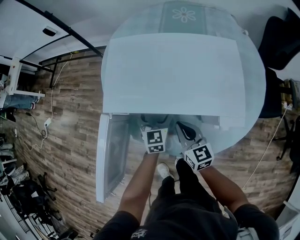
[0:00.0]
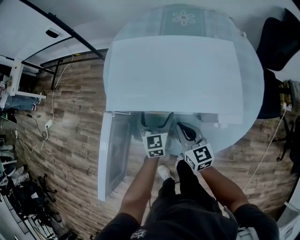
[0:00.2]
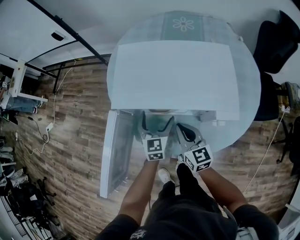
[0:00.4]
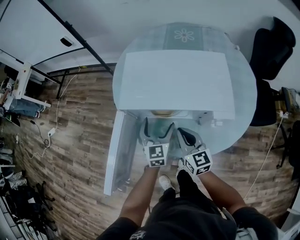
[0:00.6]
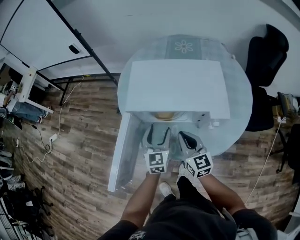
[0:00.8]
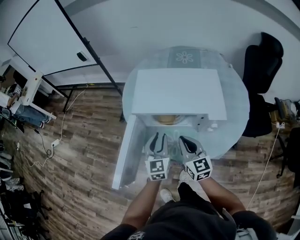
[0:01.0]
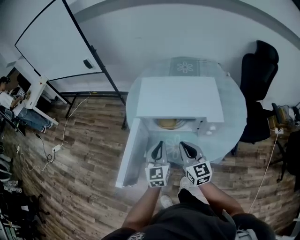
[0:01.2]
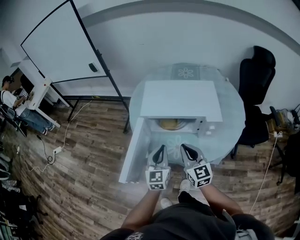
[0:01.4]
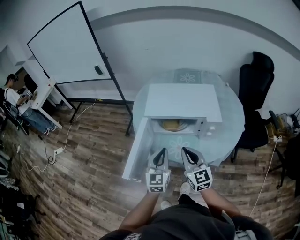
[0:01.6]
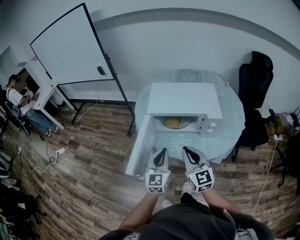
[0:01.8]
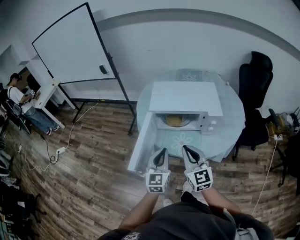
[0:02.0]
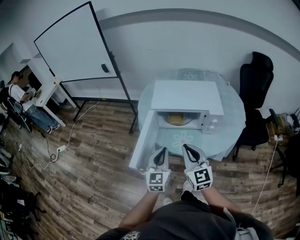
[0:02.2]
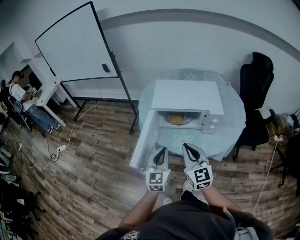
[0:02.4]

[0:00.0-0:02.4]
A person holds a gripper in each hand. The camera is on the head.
0:00.0 to 0:01.2: The left gripper moves backward and upward, some 25 cm, and closes up; the right gripper is displaced upward and backward by approximately 20 cm.
0:01.2 to 0:02.4: The left gripper moves backward and to the left, approximately 15 cm, while the right gripper heads backward, upward and to the left, covering about 15 cm.

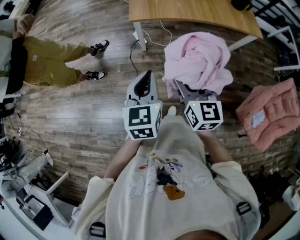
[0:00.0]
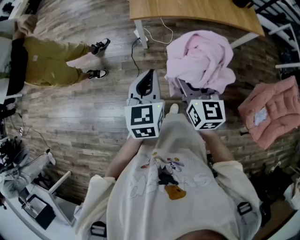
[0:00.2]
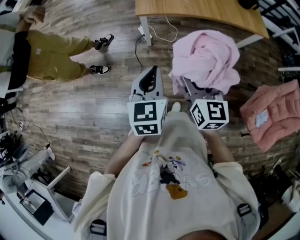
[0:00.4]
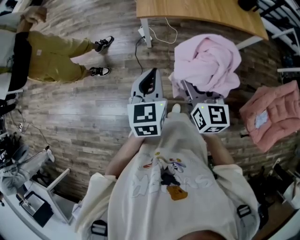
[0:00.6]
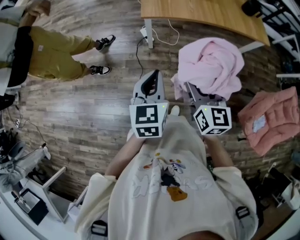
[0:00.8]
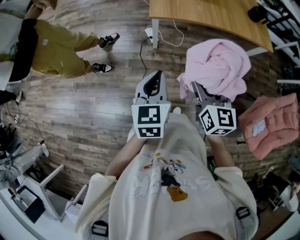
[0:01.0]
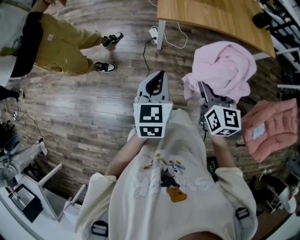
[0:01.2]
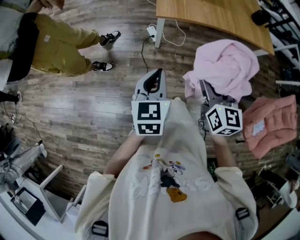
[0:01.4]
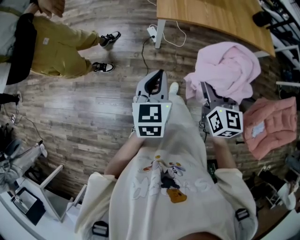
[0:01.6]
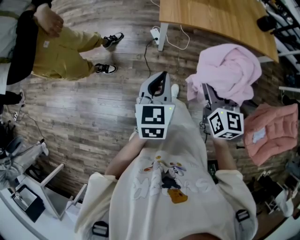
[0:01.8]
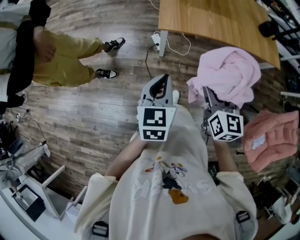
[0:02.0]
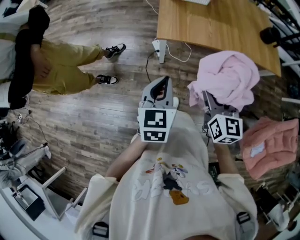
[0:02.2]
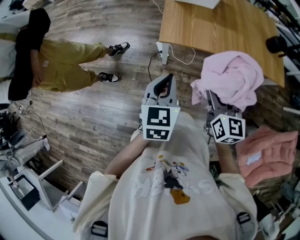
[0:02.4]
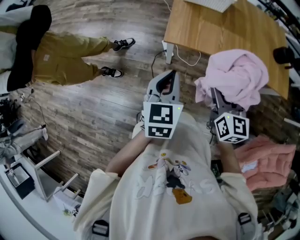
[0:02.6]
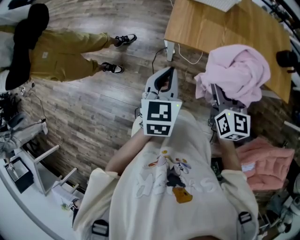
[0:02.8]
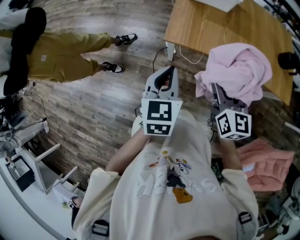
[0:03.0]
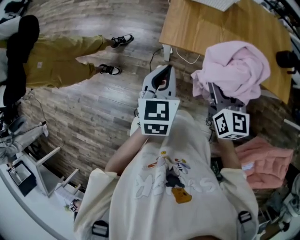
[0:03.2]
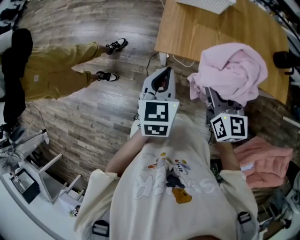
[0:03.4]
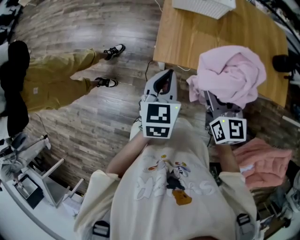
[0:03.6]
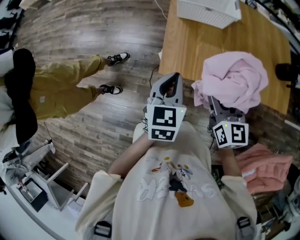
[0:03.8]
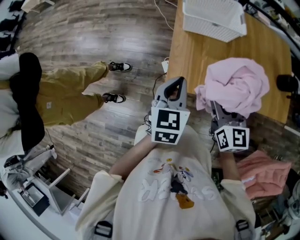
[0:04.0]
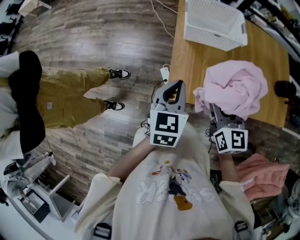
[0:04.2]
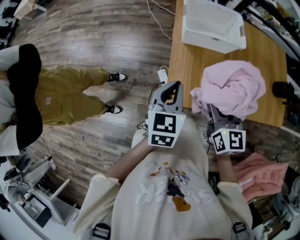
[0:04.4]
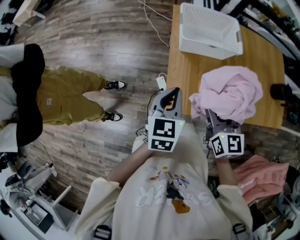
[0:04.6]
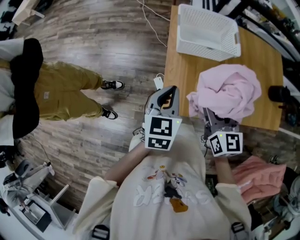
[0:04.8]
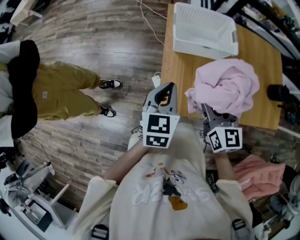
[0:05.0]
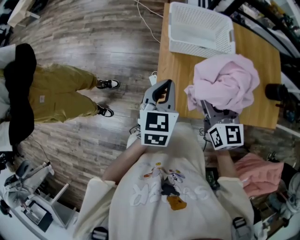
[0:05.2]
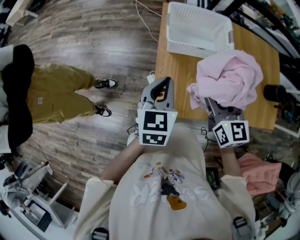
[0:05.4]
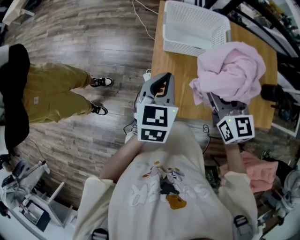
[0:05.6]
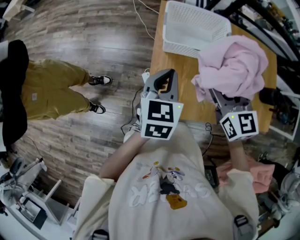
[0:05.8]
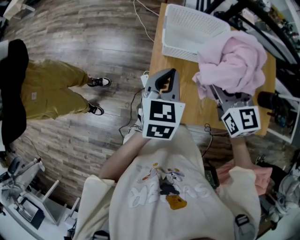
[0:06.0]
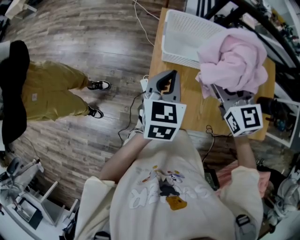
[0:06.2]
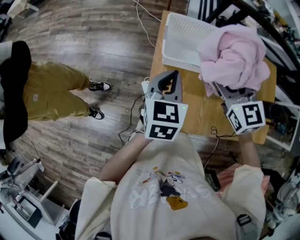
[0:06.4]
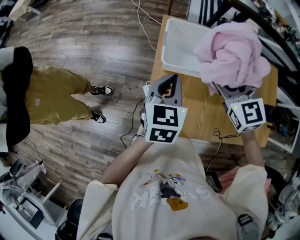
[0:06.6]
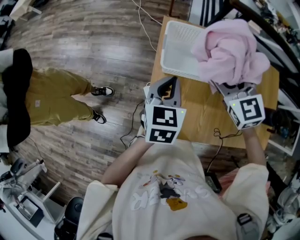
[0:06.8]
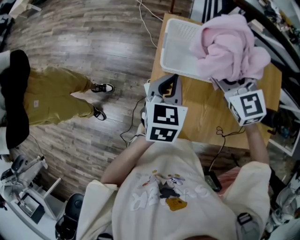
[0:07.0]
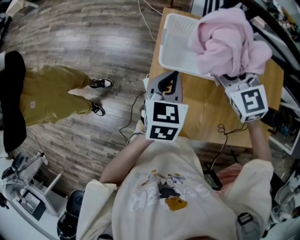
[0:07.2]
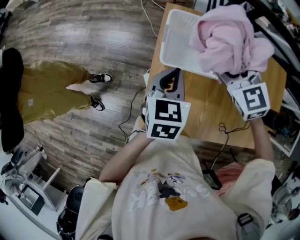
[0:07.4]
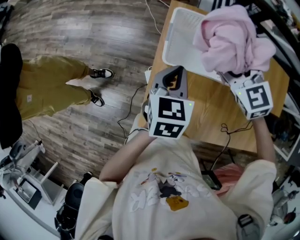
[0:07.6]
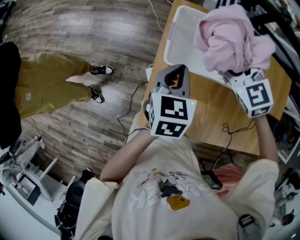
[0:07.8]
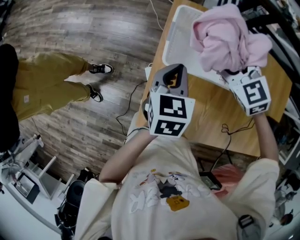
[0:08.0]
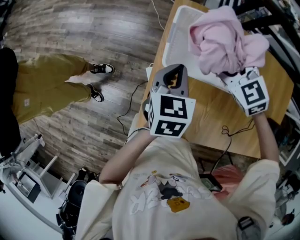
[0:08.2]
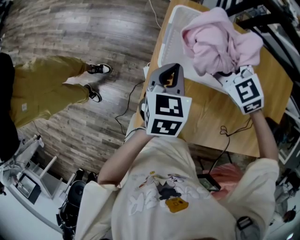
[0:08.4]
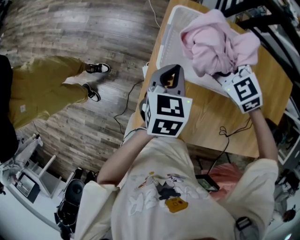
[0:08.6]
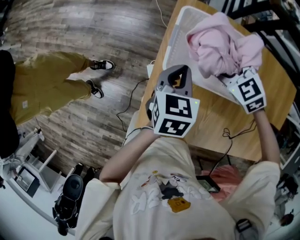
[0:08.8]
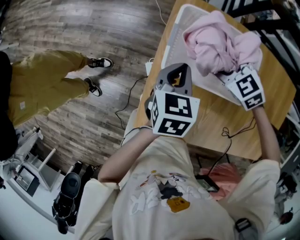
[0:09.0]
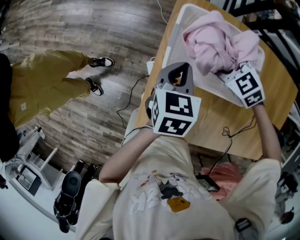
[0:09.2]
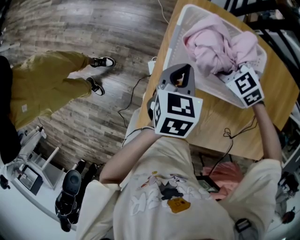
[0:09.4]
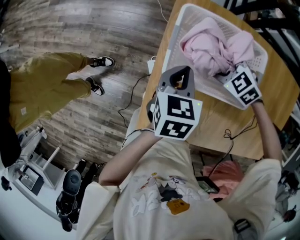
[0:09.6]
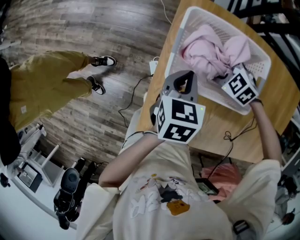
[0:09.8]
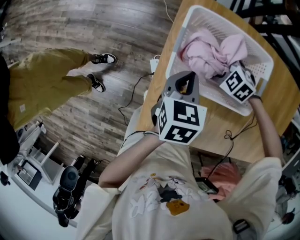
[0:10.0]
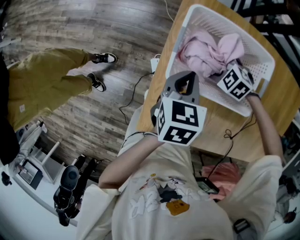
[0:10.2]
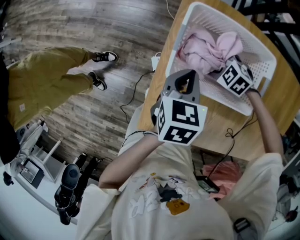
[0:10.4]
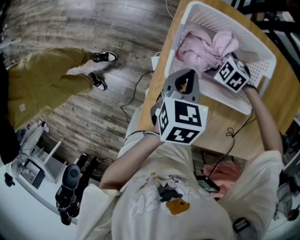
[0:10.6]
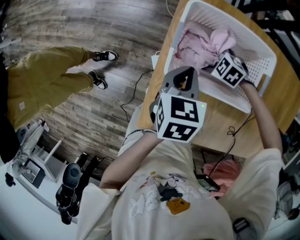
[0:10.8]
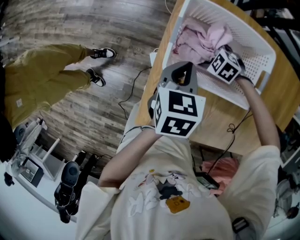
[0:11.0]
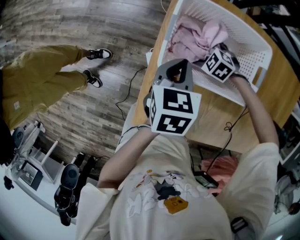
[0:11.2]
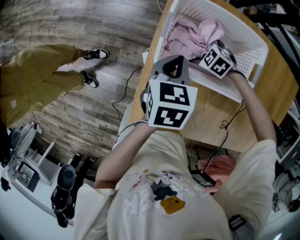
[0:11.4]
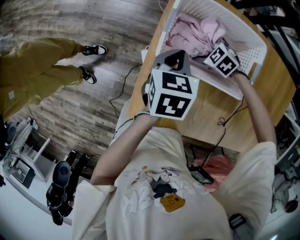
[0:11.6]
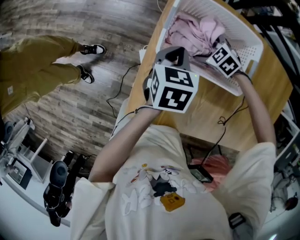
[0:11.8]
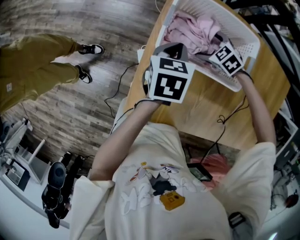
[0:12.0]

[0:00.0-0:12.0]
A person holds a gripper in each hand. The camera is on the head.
0:00.0 to 0:01.6: The left gripper moves to the left, some 10 cm; the right gripper shifts about 5 cm to the left.
0:01.6 to 0:03.0: The left gripper goes some 25 cm forward and to the right. Meanwhile the right gripper heads forward, covering roughly 25 cm.
0:03.0 to 0:04.4: The grippers both shift forward by some 30 cm.
0:04.4 to 0:06.0: The right gripper shifts about 20 cm forward. The left gripper shifts approximately 15 cm forward and to the right.
0:06.0 to 0:07.6: The left gripper moves forward and downward, some 10 cm. Meanwhile the right gripper shifts some 15 cm forward, and changes its angle by roughly 30 degrees.
0:07.6 to 0:09.0: The left gripper heads downward, covering roughly 5 cm; the right gripper travels downward by roughly 15 cm, and changes its angle by approximately 20 degrees.
0:09.0 to 0:10.4: The right gripper travels downward by approximately 15 cm, and turns by roughly 20 degrees.
0:10.4 to 0:12.0: The grippers make only small movements.

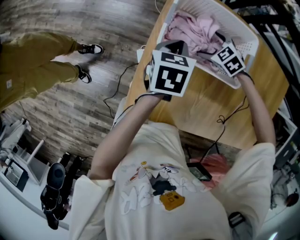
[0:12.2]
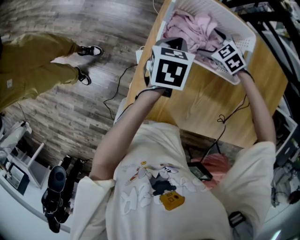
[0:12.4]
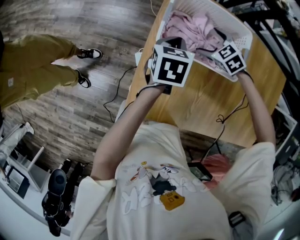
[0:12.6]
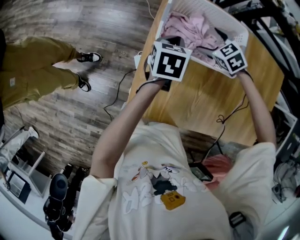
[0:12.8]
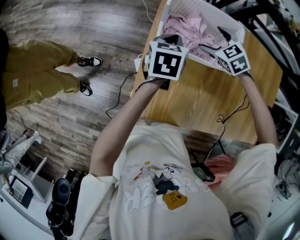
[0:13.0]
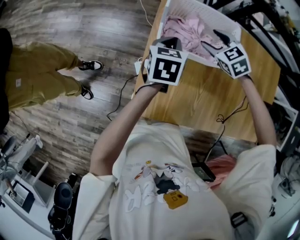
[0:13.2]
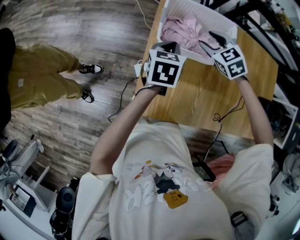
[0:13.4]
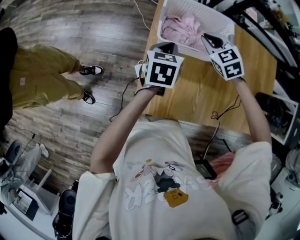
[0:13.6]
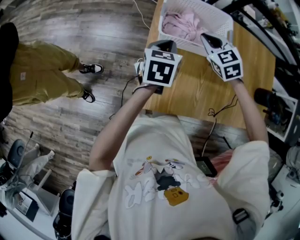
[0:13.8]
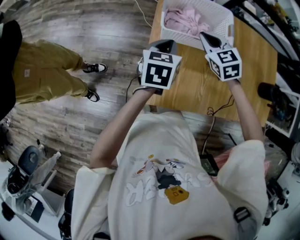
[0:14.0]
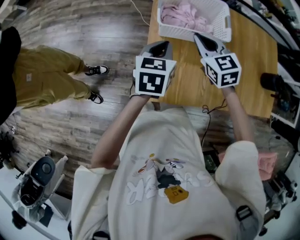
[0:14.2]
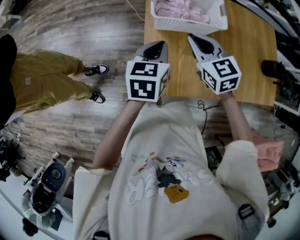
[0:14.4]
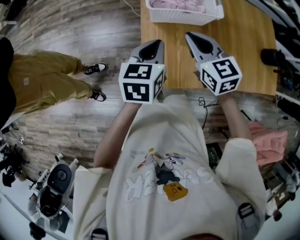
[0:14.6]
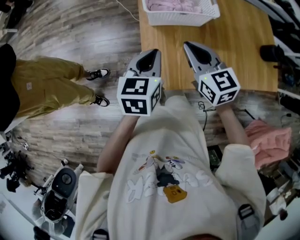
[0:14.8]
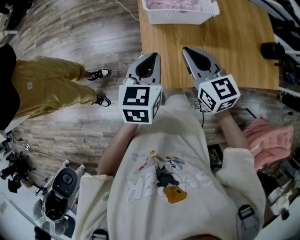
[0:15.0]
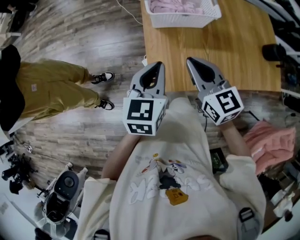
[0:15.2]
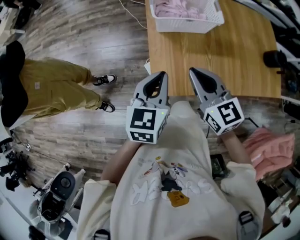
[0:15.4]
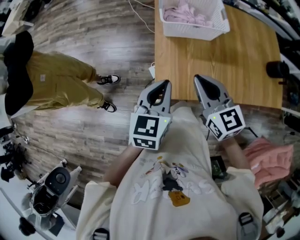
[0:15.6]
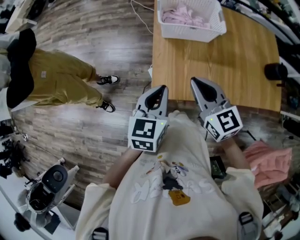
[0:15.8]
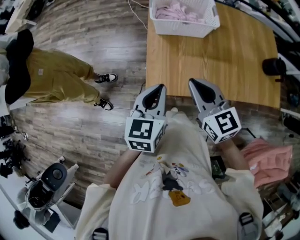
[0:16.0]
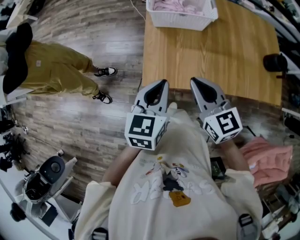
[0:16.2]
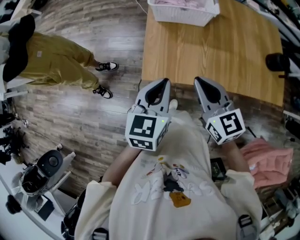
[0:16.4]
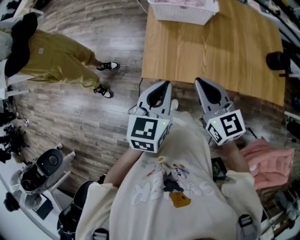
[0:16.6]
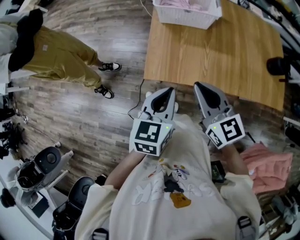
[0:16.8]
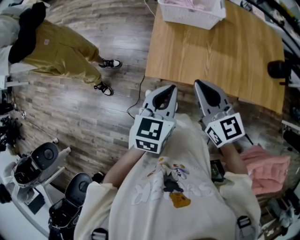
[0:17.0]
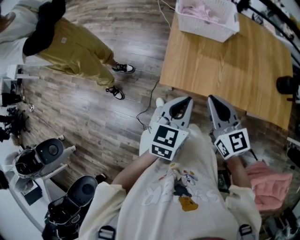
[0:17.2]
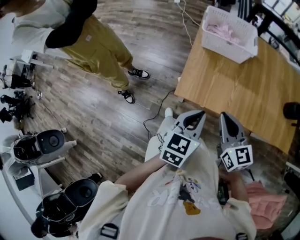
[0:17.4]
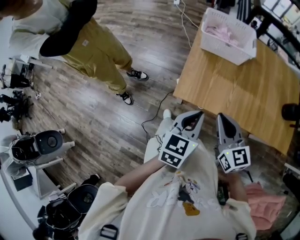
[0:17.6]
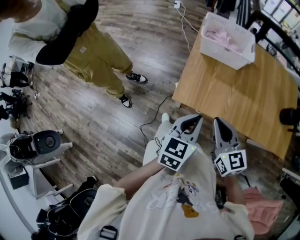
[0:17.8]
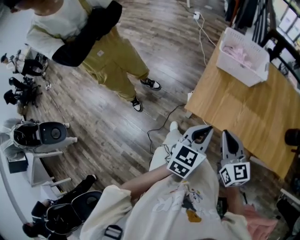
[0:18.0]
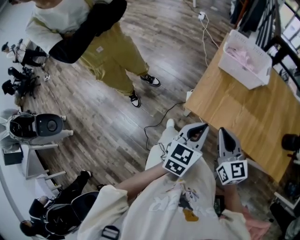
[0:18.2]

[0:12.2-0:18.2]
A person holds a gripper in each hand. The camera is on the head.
0:12.2 to 0:13.8: The left gripper travels backward and upward by approximately 10 cm. The right gripper travels upward and backward by about 20 cm, changes its angle by some 30 degrees, and closes.
0:13.8 to 0:15.2: The left gripper travels backward and upward by about 20 cm. Meanwhile the right gripper heads backward, covering about 25 cm, and rotates about 40 degrees.
0:15.2 to 0:16.6: Both grippers travel together backward and to the right, about 15 cm.
0:16.6 to 0:18.2: The right gripper heads to the left, covering about 5 cm.

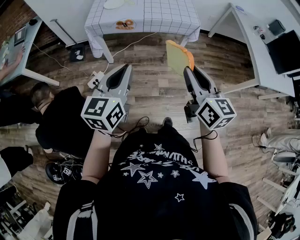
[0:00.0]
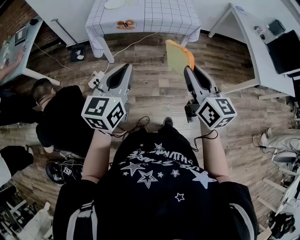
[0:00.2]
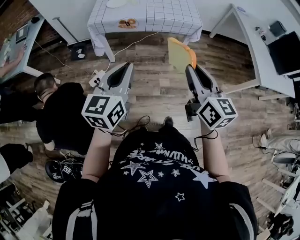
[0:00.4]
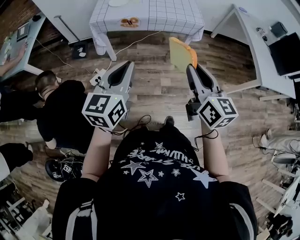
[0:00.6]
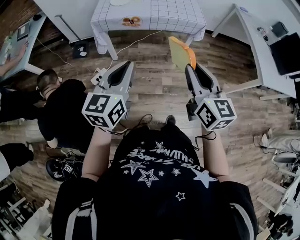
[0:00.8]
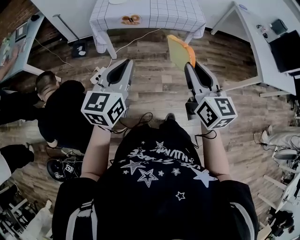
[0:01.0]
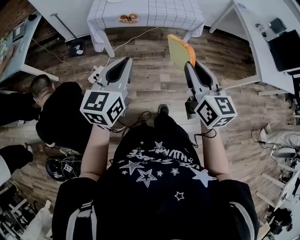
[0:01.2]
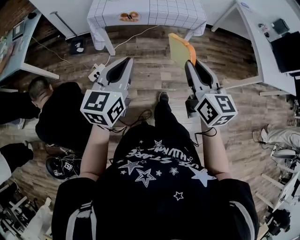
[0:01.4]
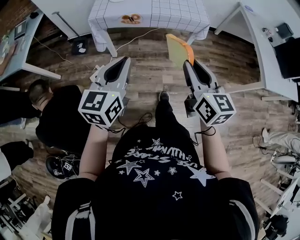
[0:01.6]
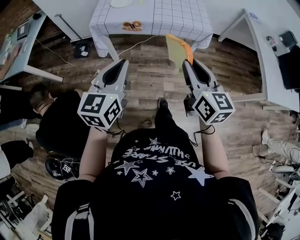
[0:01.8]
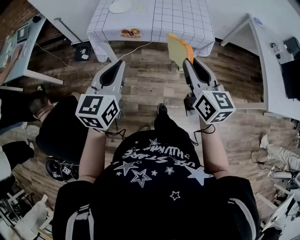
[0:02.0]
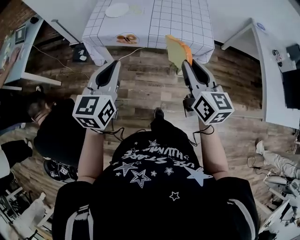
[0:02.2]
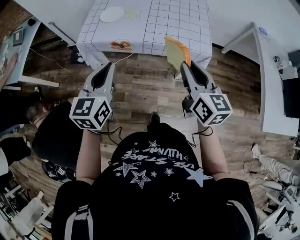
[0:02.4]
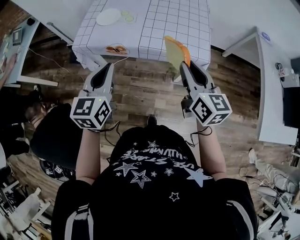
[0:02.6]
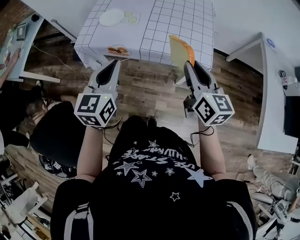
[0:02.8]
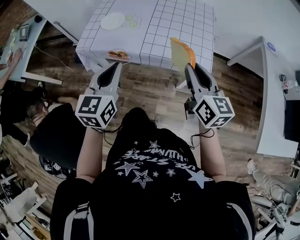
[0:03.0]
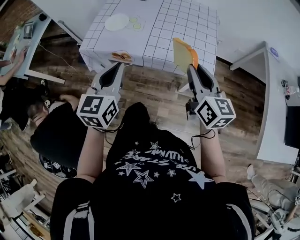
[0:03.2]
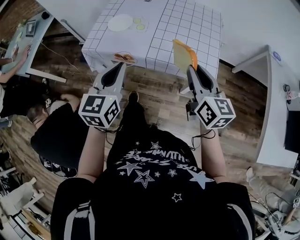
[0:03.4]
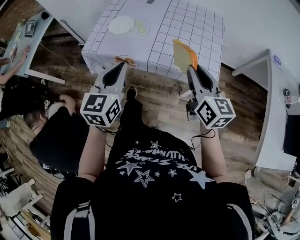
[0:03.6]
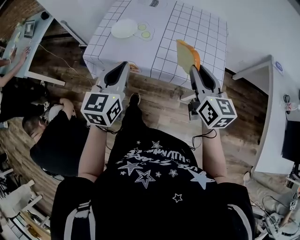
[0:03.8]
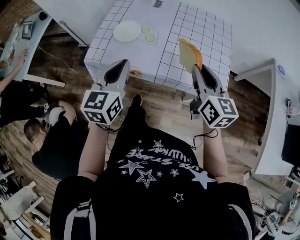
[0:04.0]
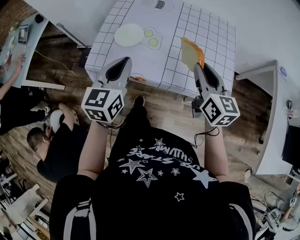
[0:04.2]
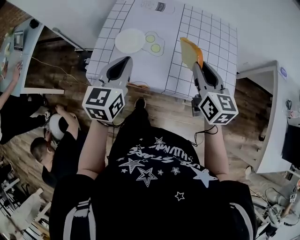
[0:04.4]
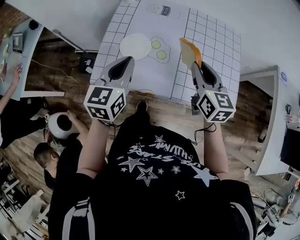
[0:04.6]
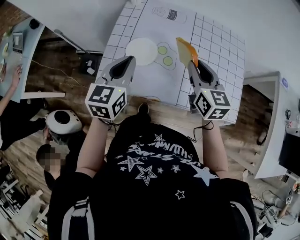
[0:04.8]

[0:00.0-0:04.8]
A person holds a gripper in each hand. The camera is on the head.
0:00.0 to 0:01.6: The right gripper changes place by roughly 5 cm.
0:01.6 to 0:03.2: The grippers both shift forward and to the right by some 30 cm.
0:03.2 to 0:04.8: Both grippers move forward and to the left, approximately 35 cm.
